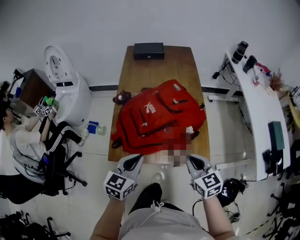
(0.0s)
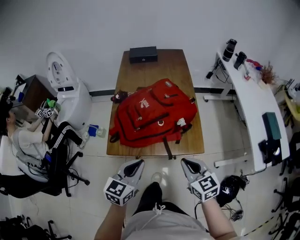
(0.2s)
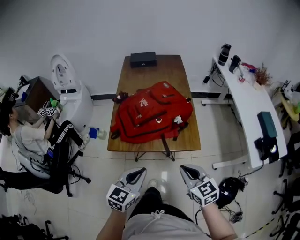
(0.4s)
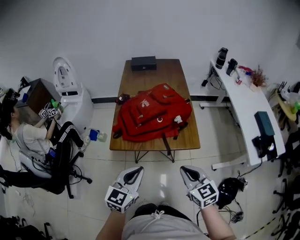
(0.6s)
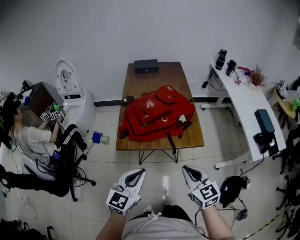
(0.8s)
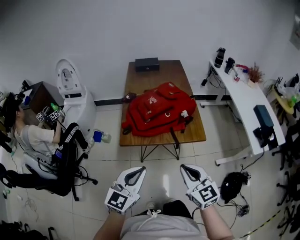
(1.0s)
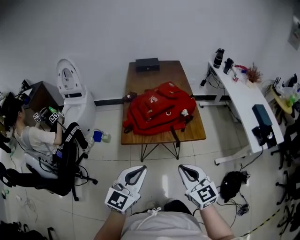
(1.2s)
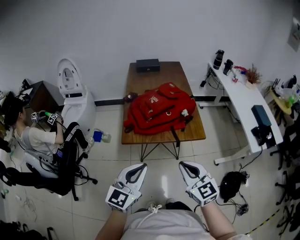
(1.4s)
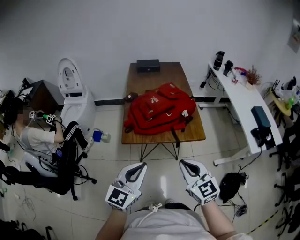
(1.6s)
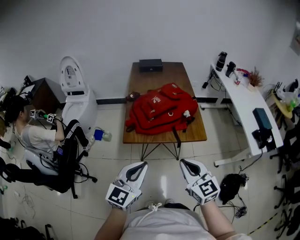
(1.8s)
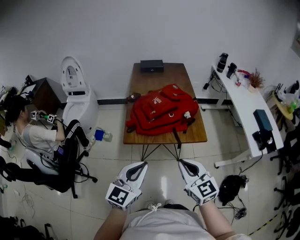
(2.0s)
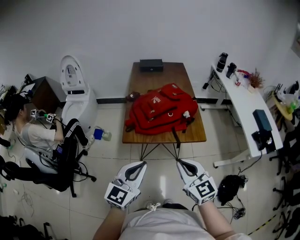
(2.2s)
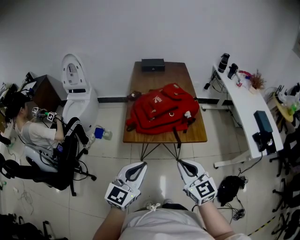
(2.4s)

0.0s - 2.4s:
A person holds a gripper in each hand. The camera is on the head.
0.0s - 1.2s: The left gripper goes approximately 30 cm backward and upward, and changes its angle by about 20 degrees, while the right gripper goes some 25 cm backward.
1.2s - 2.4s: The grippers move only a little.

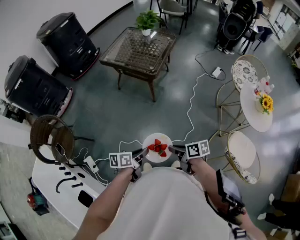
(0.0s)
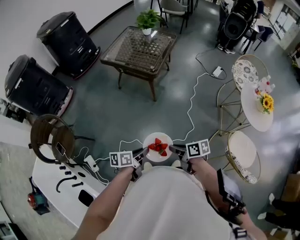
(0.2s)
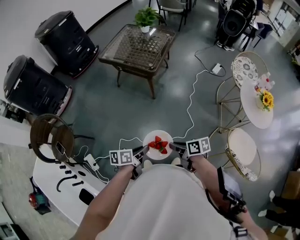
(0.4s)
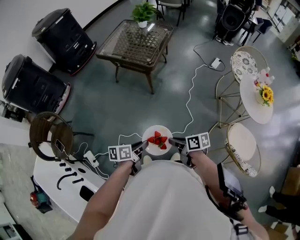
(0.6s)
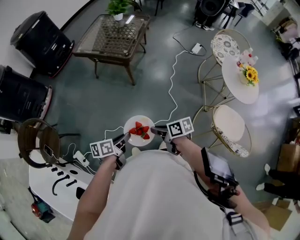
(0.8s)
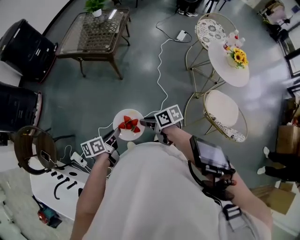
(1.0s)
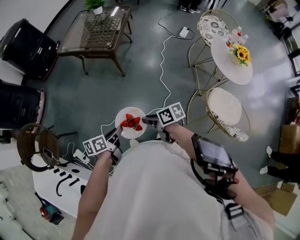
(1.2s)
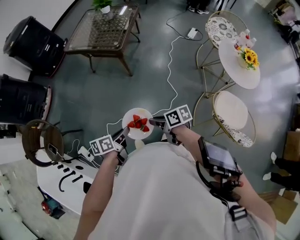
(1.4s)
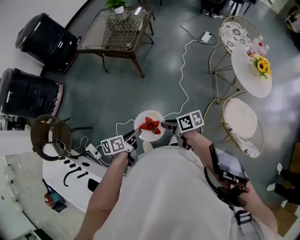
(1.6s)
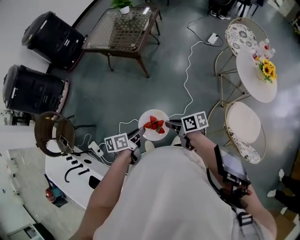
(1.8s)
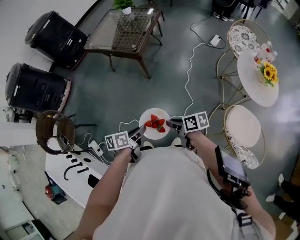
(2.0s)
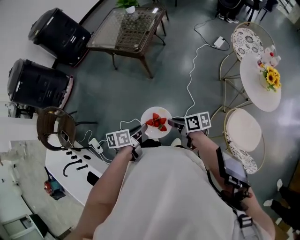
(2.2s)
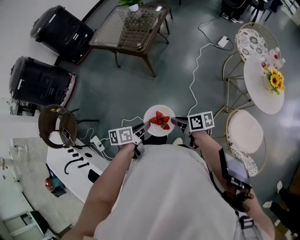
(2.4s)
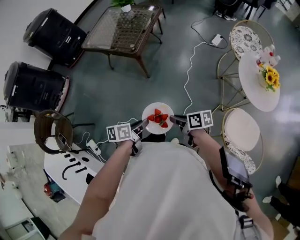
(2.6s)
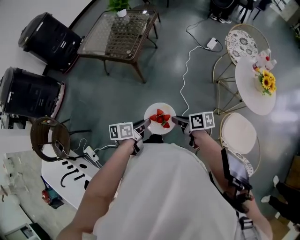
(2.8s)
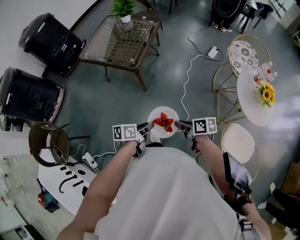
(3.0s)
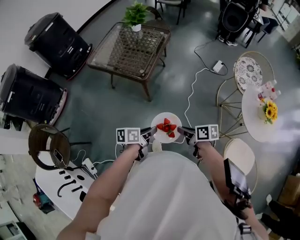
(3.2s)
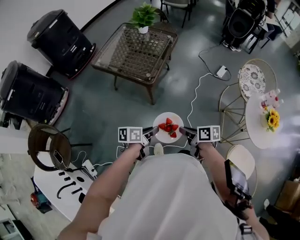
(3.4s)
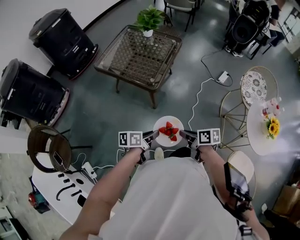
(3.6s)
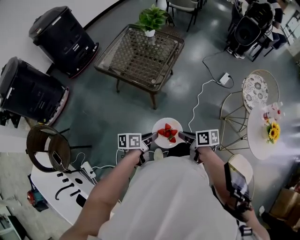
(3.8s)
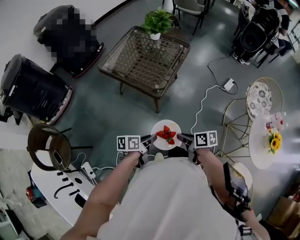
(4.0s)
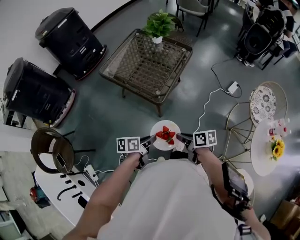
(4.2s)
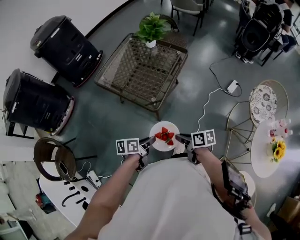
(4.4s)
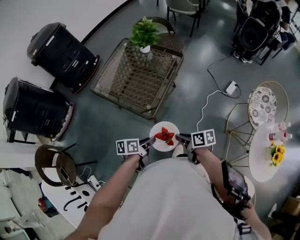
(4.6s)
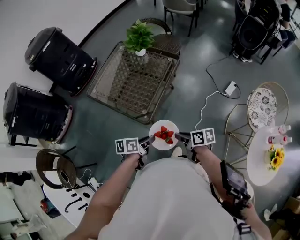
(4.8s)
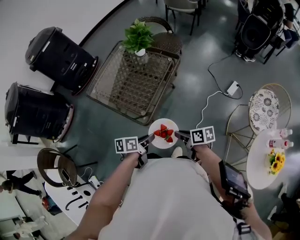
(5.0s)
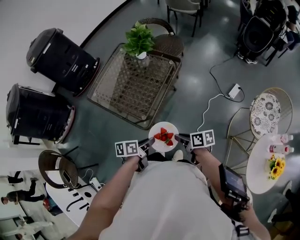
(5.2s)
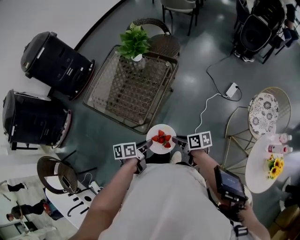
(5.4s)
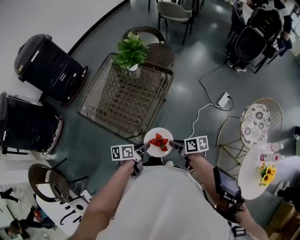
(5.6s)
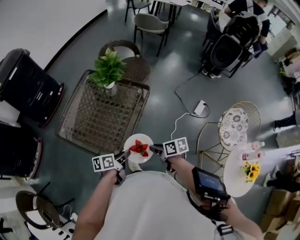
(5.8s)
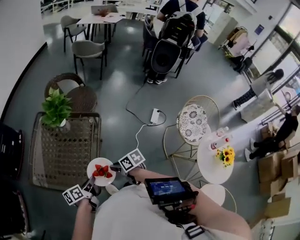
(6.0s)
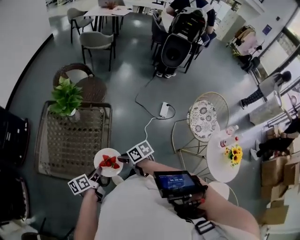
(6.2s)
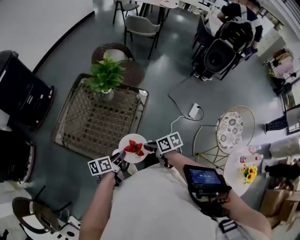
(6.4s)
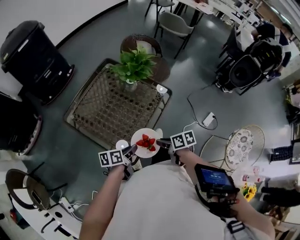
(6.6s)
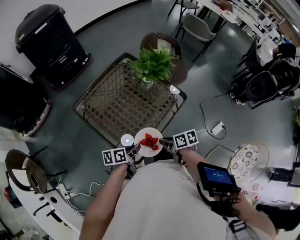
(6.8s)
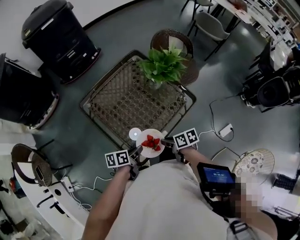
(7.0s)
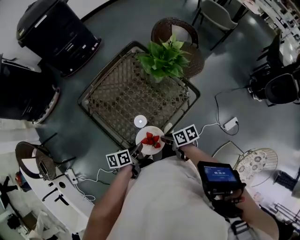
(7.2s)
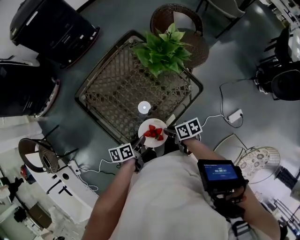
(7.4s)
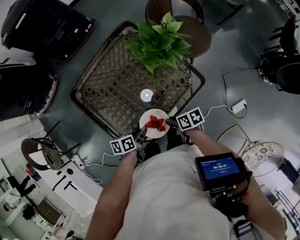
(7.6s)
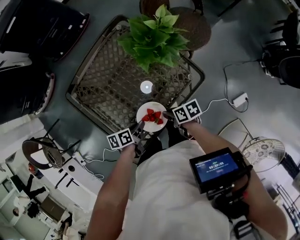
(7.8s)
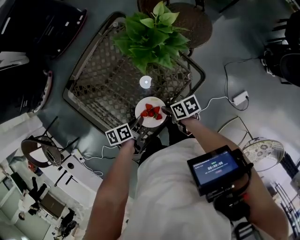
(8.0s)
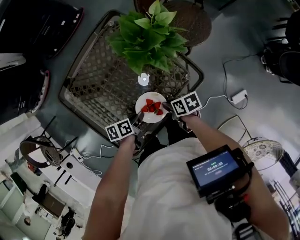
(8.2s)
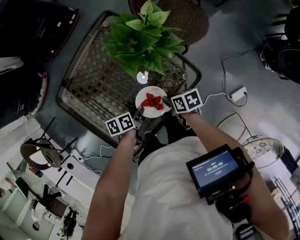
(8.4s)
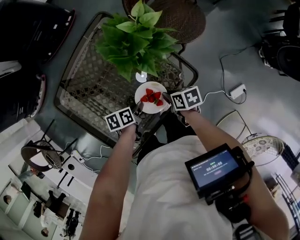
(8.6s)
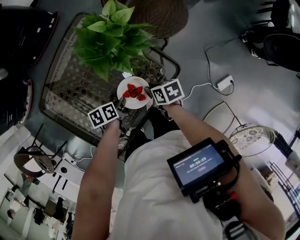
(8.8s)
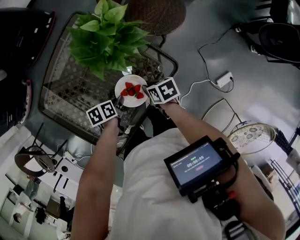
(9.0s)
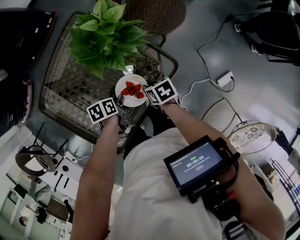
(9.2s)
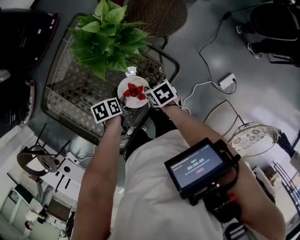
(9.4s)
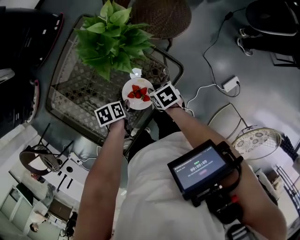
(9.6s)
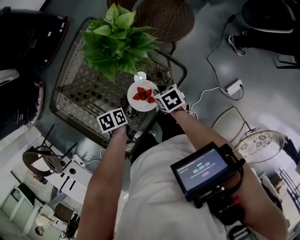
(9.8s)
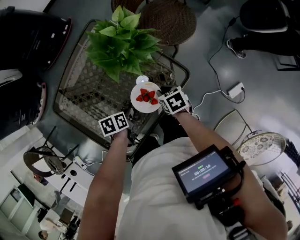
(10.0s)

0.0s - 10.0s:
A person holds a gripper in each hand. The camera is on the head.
0.0s - 1.4s: The right gripper ends up some 5 cm from where it was.
1.4s - 2.8s: The right gripper ends up some 15 cm from where it was.
2.8s - 4.2s: The right gripper ends up about 30 cm from where it was.
4.2s - 5.8s: The right gripper ends up some 35 cm from where it was.
5.8s - 7.2s: The right gripper shifts by about 20 cm, and rotates some 40 degrees.
7.2s - 8.6s: The right gripper moves some 20 cm.

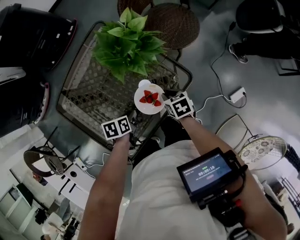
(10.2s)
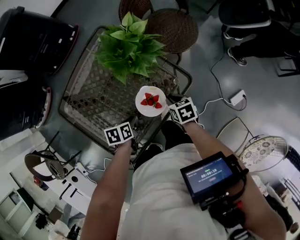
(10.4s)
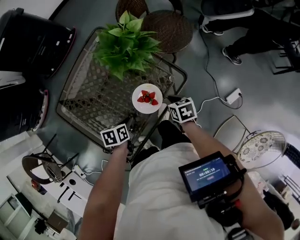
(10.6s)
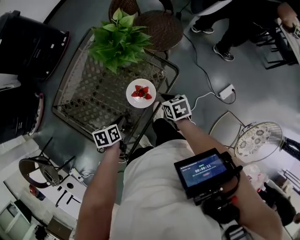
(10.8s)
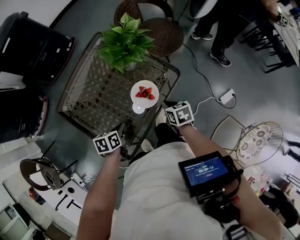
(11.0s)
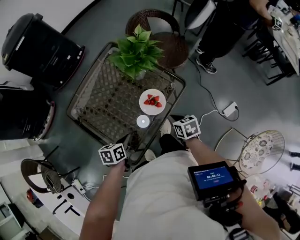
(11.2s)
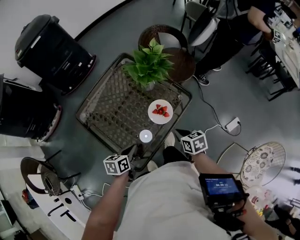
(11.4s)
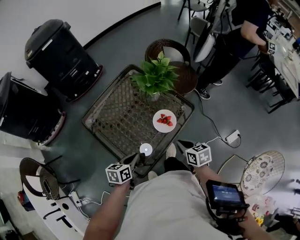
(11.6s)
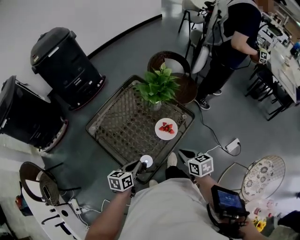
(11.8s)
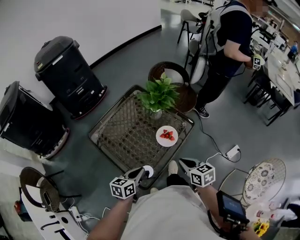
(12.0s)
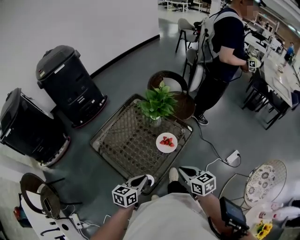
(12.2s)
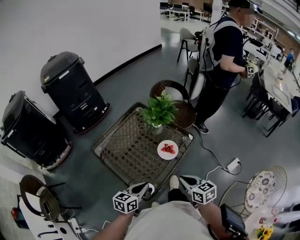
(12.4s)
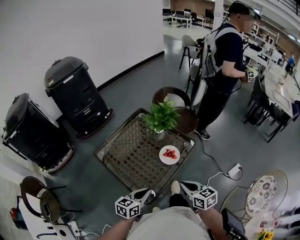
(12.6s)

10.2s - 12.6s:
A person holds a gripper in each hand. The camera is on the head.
10.2s - 11.4s: The right gripper moves about 20 cm.
11.4s - 12.6s: The right gripper changes place by about 20 cm, and swivels roughly 20 degrees.

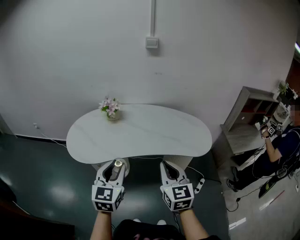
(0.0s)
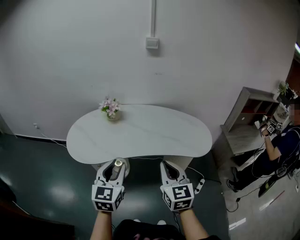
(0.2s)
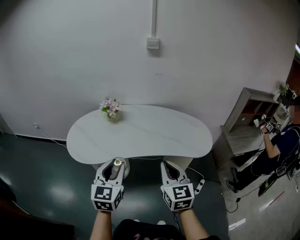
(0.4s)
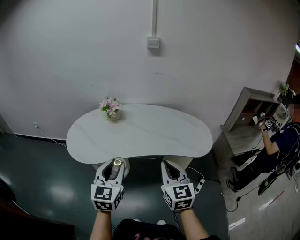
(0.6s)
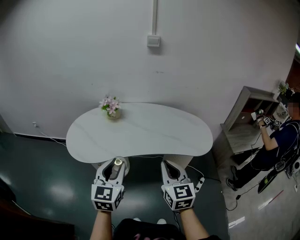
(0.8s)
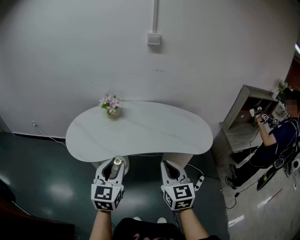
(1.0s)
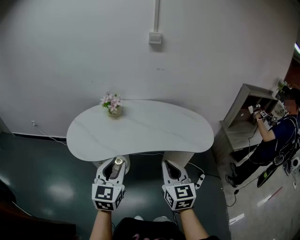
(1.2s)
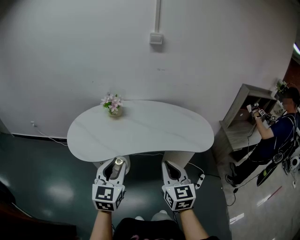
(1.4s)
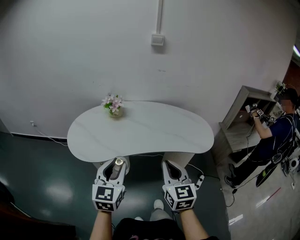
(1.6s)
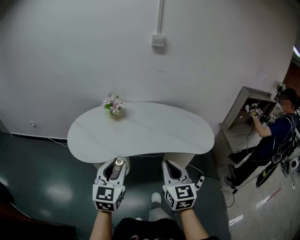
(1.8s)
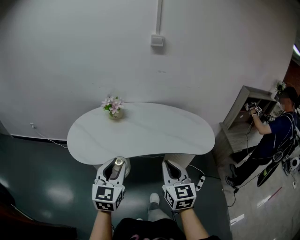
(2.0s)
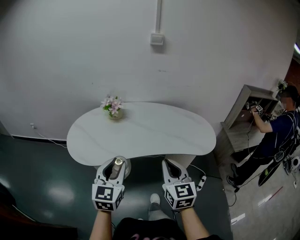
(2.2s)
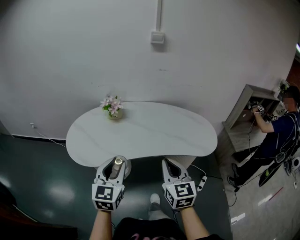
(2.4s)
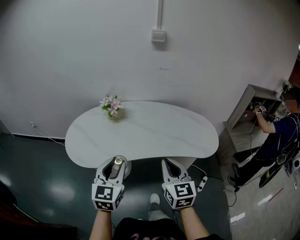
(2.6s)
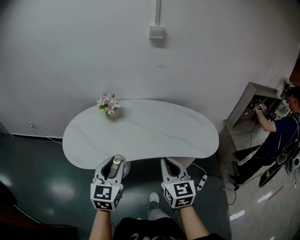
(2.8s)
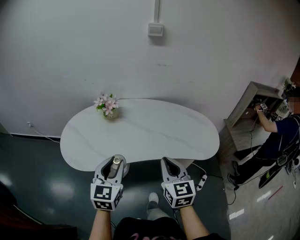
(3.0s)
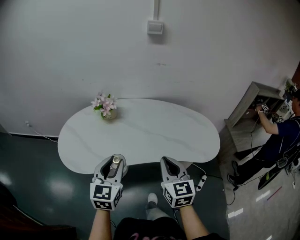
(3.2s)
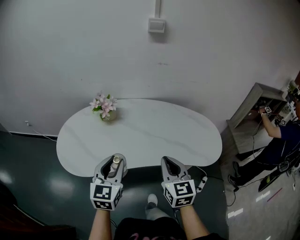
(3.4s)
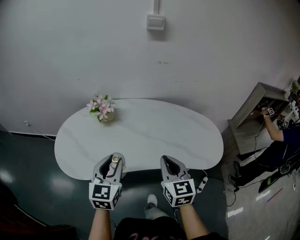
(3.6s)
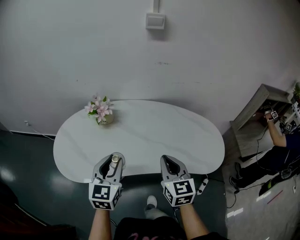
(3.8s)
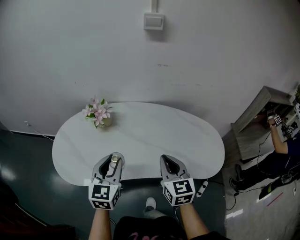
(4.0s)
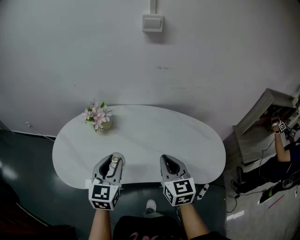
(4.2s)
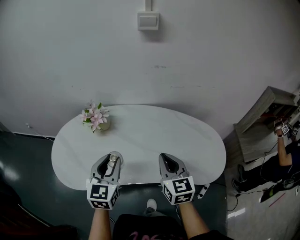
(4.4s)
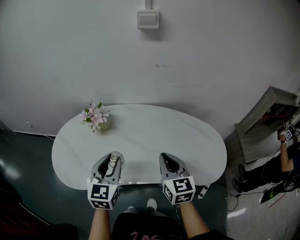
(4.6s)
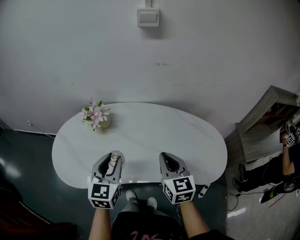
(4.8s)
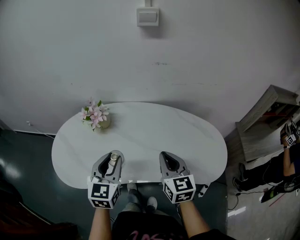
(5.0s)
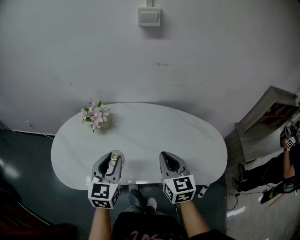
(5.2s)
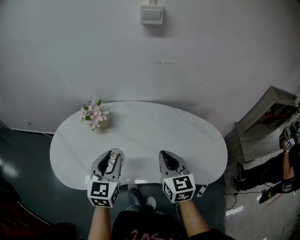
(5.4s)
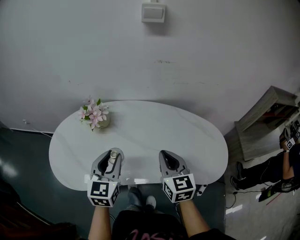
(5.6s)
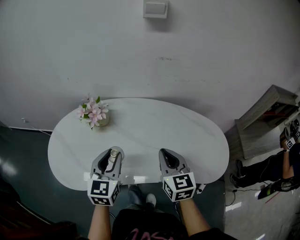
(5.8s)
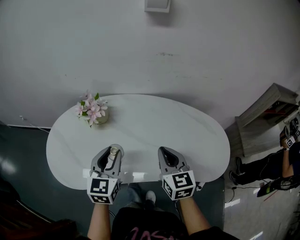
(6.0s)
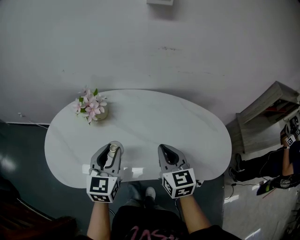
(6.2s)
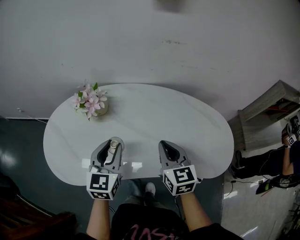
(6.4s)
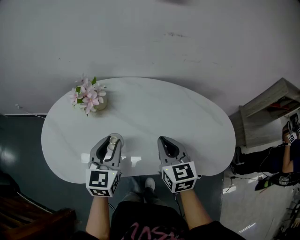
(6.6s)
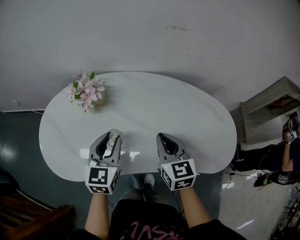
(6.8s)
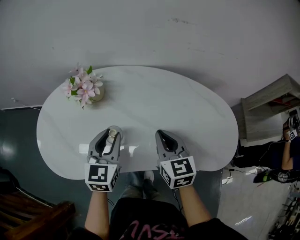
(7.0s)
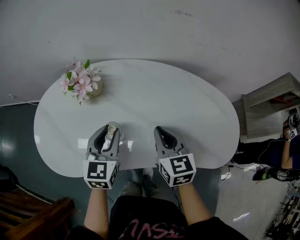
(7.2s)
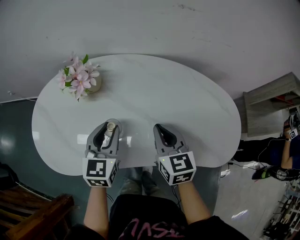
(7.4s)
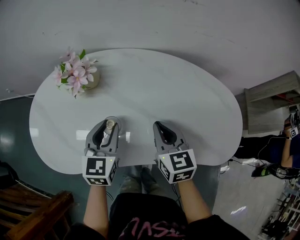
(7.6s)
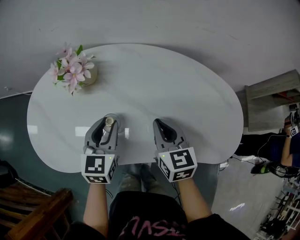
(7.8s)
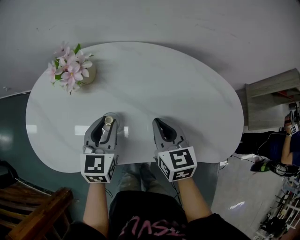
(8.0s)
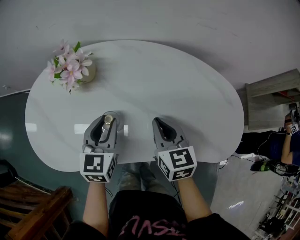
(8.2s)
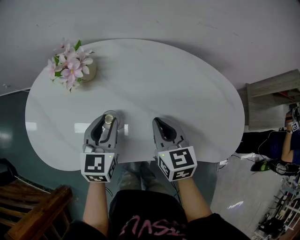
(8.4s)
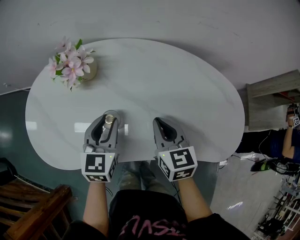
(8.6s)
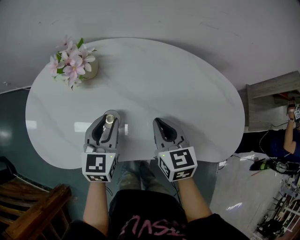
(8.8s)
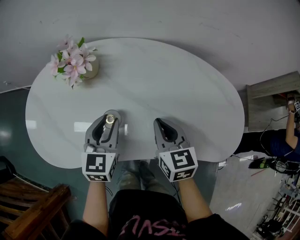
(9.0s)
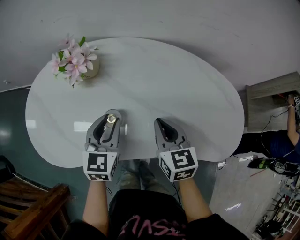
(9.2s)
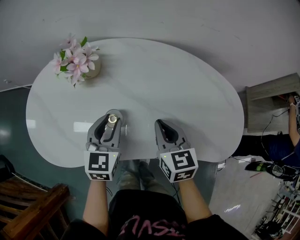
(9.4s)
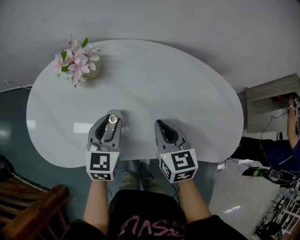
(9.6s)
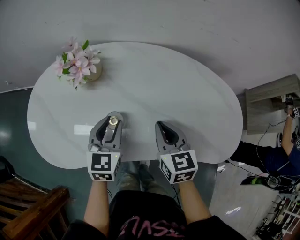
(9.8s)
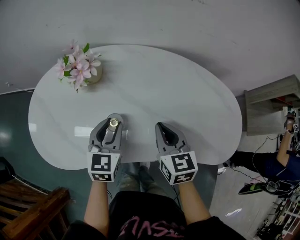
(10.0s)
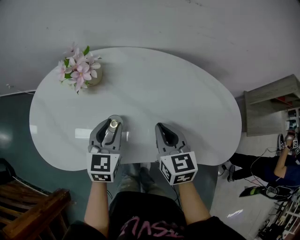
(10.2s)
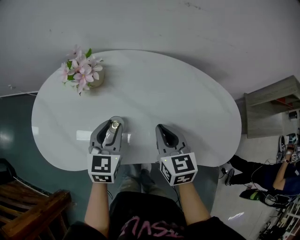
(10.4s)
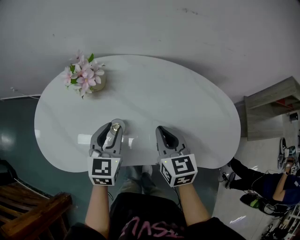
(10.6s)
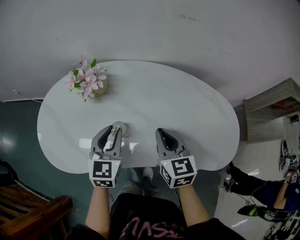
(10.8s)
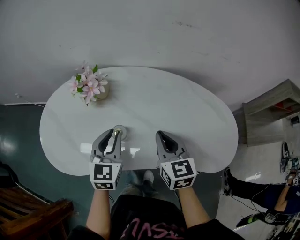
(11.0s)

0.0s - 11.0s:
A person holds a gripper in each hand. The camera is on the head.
0.0s - 1.6s: The grippers move only a little.
1.6s - 3.2s: Both grippers move forward, approximately 10 cm.
3.2s - 4.8s: The two grippers go approximately 15 cm forward.
4.8s - 6.2s: The right gripper ends up about 5 cm from where it was; the left gripper moves some 5 cm.
6.2s - 7.8s: Both grippers move downward, about 10 cm.
7.8s - 9.4s: The grippers stay close to where they were, moving slightly.
9.4s - 11.0s: The two grippers go about 5 cm upward.
